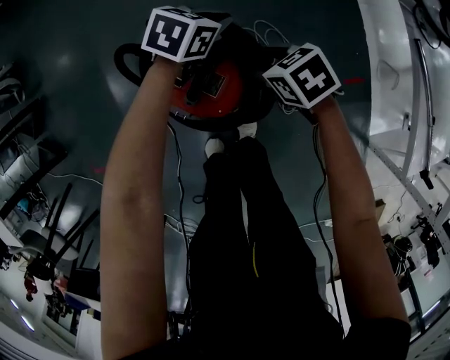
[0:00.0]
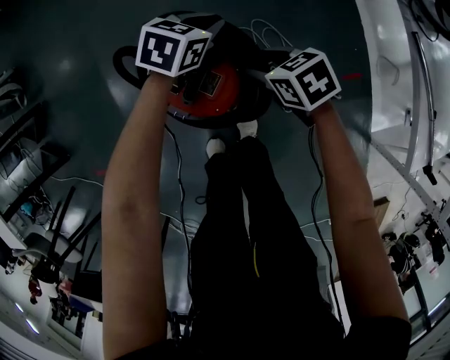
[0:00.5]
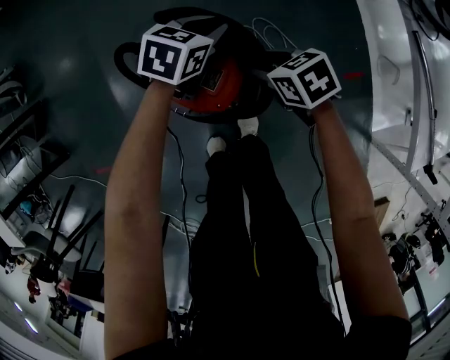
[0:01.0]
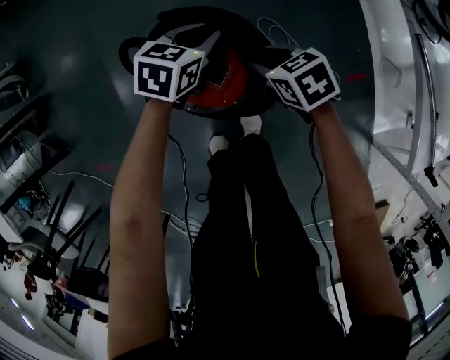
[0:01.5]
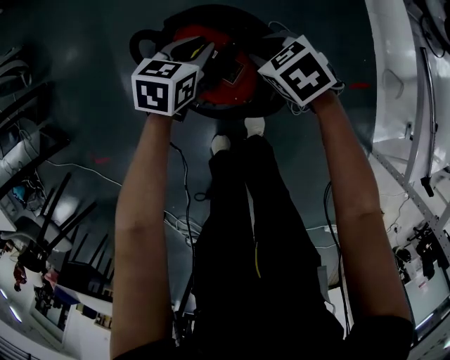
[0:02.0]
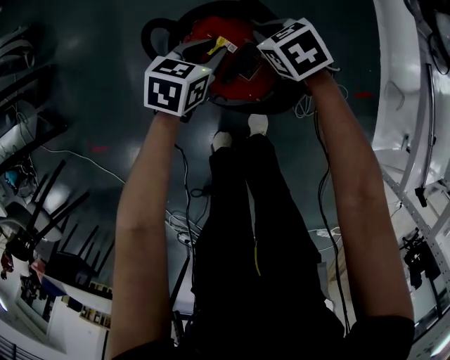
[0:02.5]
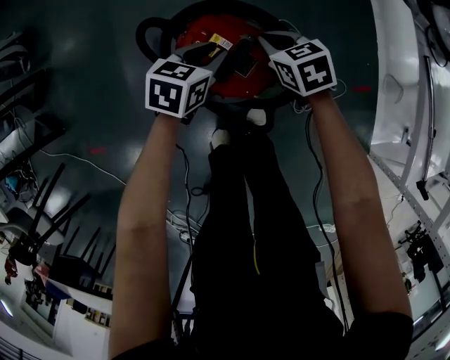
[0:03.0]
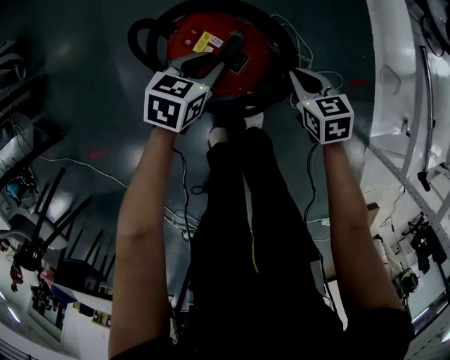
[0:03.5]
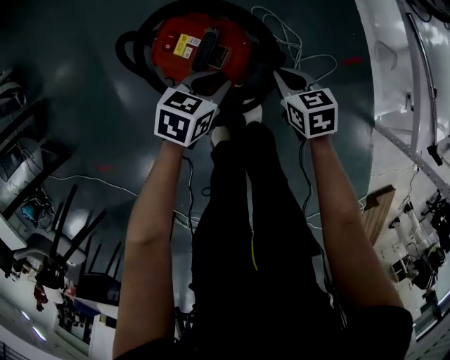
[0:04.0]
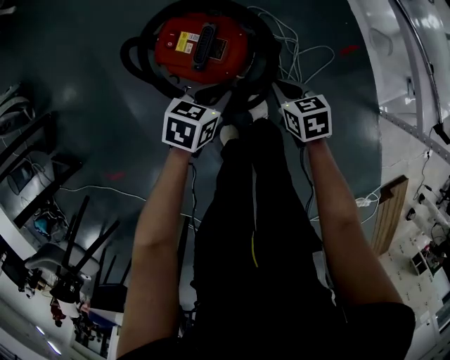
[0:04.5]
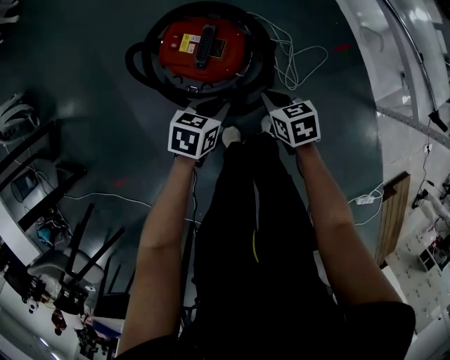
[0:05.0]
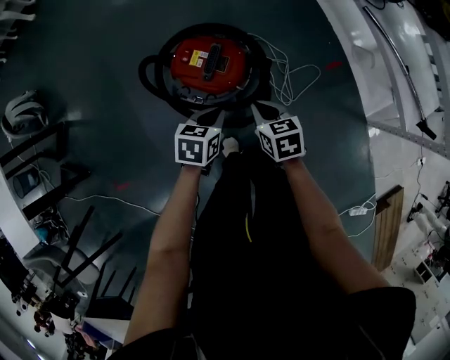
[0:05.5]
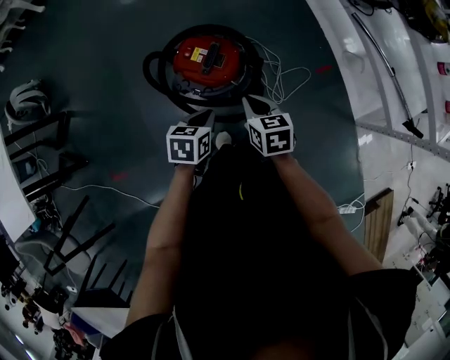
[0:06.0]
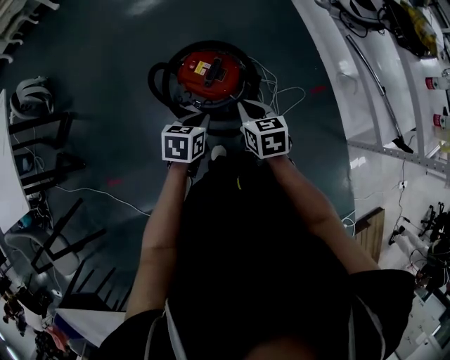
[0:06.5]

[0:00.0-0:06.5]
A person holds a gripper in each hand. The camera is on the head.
0:00.0 to 0:02.0: The right gripper changes place by some 5 cm, and closes its fingers, while the left gripper changes place by some 15 cm.
0:02.0 to 0:04.5: The left gripper ends up some 20 cm from where it was, and turns by roughly 20 degrees, while the right gripper shifts by roughly 20 cm, turns by some 40 degrees, and closes its fingers.
0:04.5 to 0:06.5: The left gripper heads upward and backward, covering roughly 20 cm; the right gripper goes about 25 cm upward.

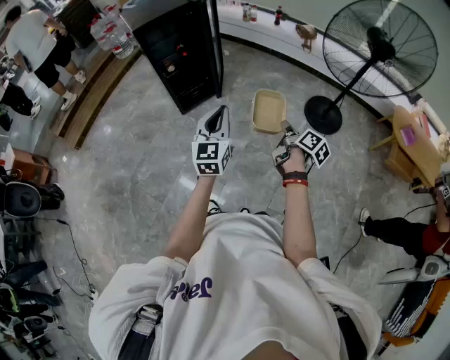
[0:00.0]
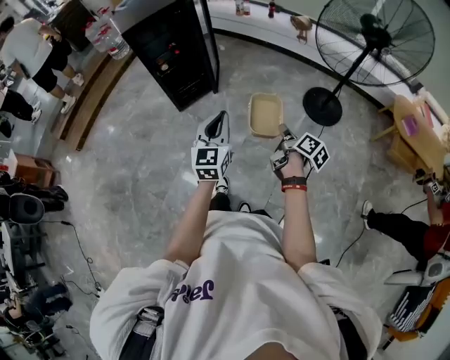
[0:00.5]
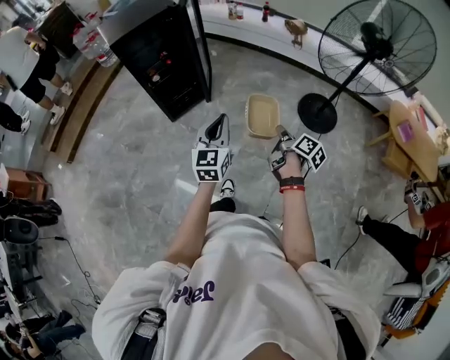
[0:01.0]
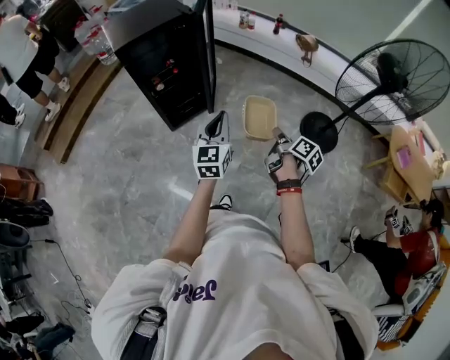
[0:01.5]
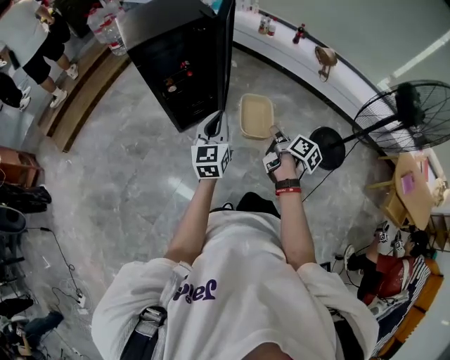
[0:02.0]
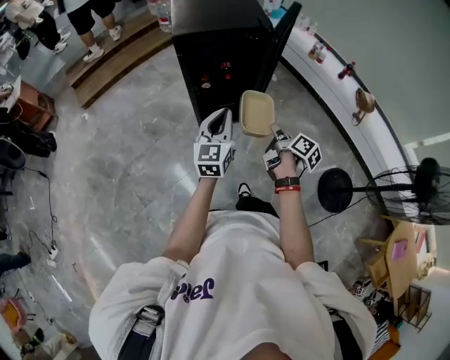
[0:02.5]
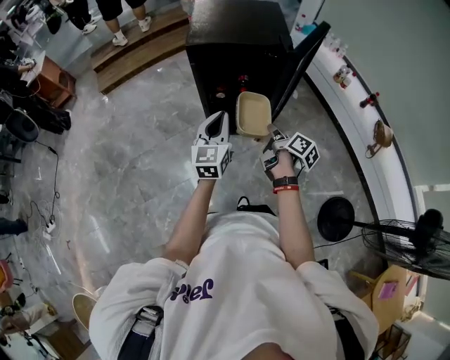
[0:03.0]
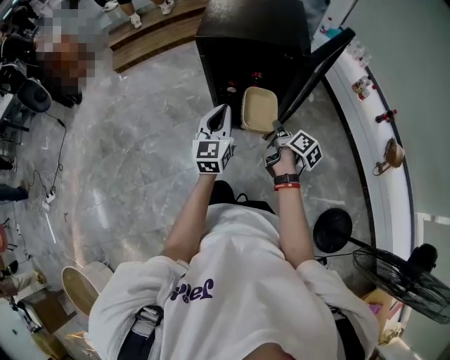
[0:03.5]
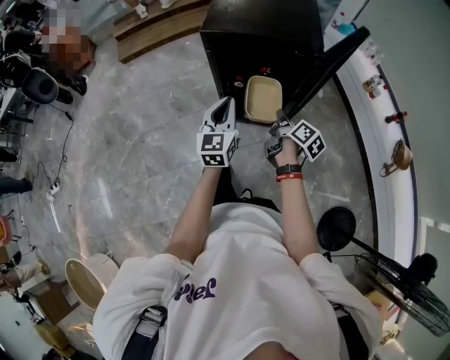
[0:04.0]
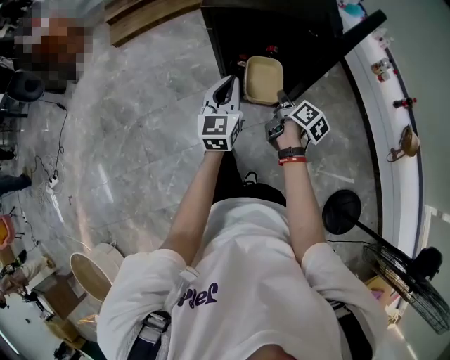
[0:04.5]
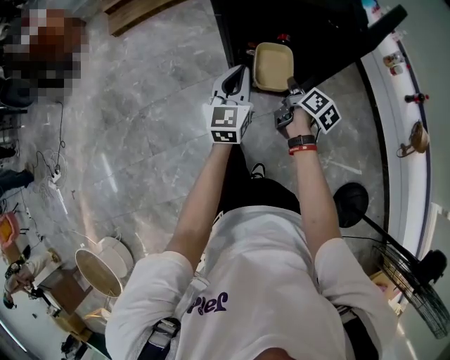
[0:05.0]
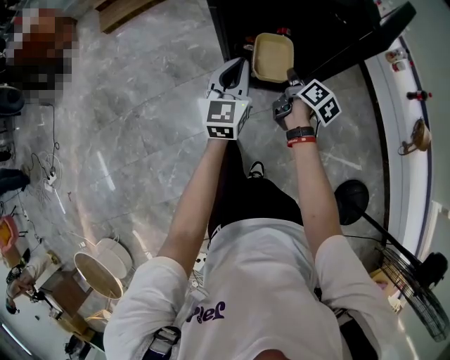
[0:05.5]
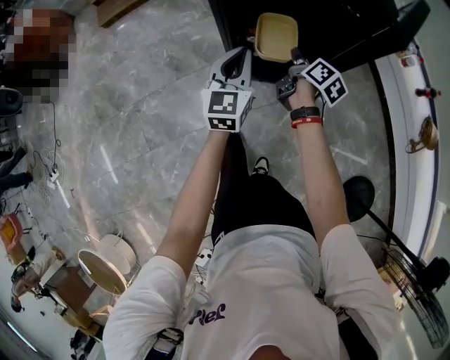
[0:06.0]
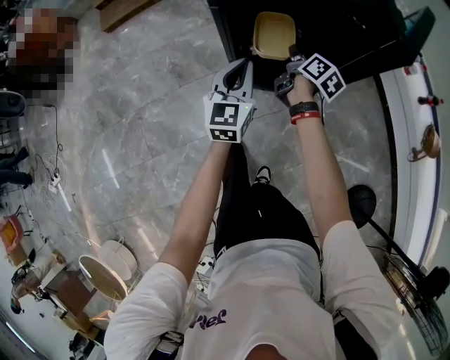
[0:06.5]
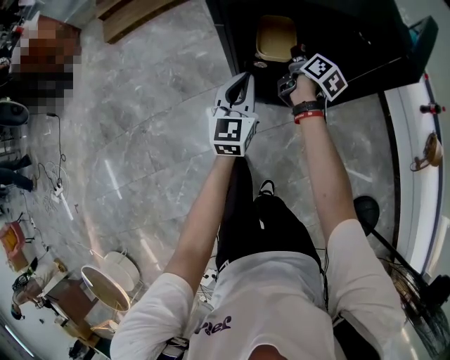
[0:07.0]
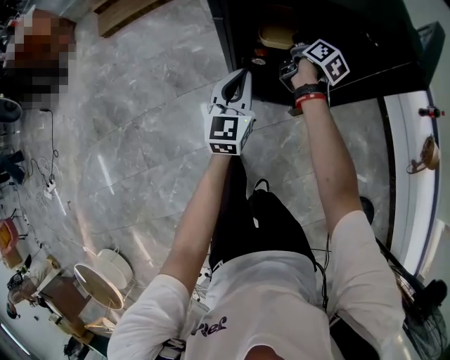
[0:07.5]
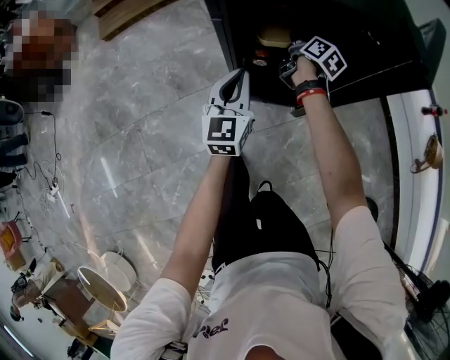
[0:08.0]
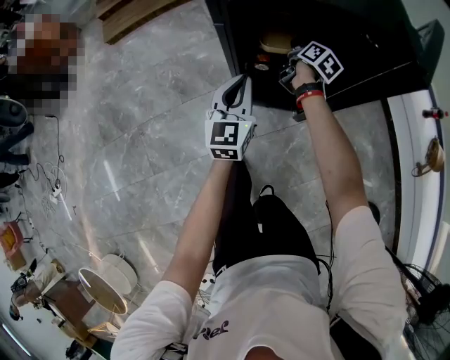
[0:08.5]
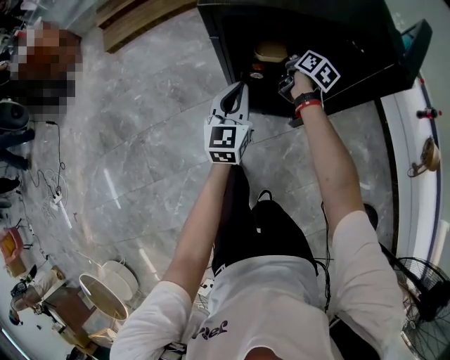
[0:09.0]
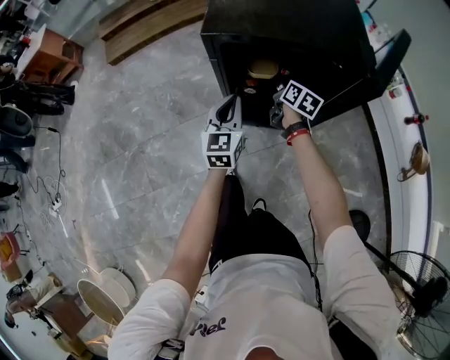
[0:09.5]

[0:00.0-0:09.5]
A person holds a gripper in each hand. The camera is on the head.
0:00.0 to 0:02.0: The two grippers go approximately 35 cm forward.
0:02.0 to 0:04.0: The right gripper ends up some 40 cm from where it was, and changes its angle by roughly 30 degrees. The left gripper changes place by roughly 30 cm, and rotates about 40 degrees.
0:04.0 to 0:05.5: The grippers both shift downward and forward by some 15 cm.
0:05.5 to 0:07.5: The right gripper goes roughly 25 cm forward; the left gripper goes some 10 cm downward and forward.
0:07.5 to 0:09.5: The left gripper heads upward, covering about 5 cm, while the right gripper travels upward and backward by approximately 10 cm, and changes its angle by some 20 degrees.

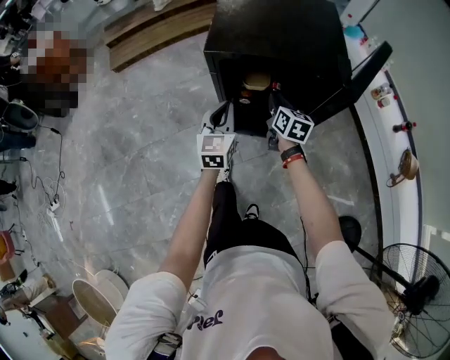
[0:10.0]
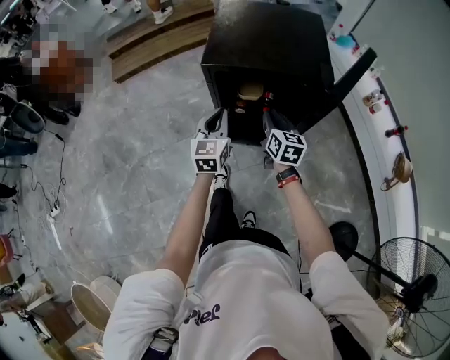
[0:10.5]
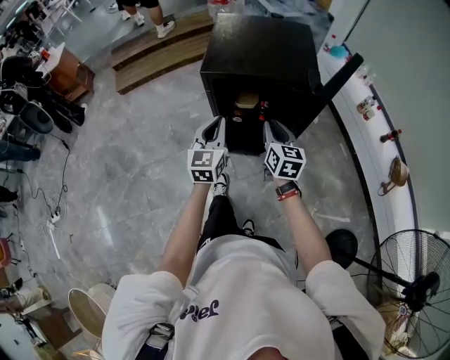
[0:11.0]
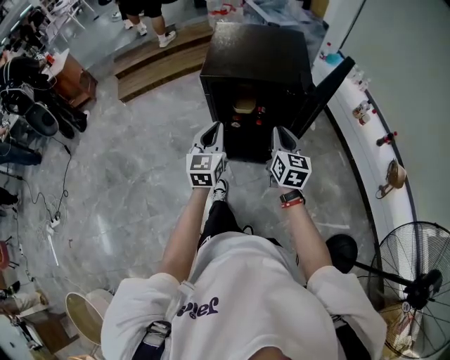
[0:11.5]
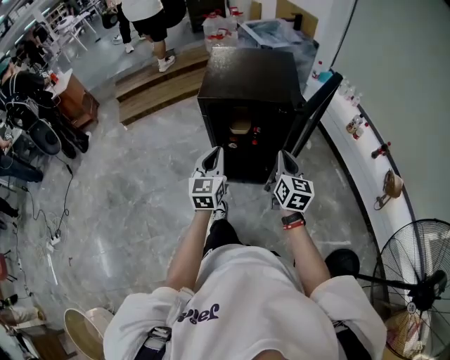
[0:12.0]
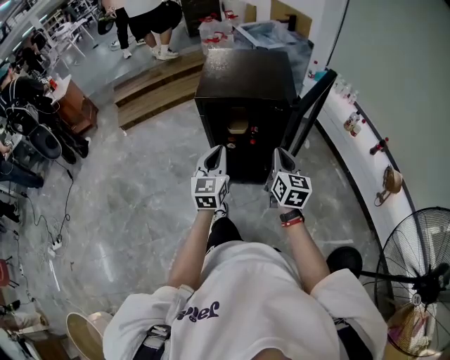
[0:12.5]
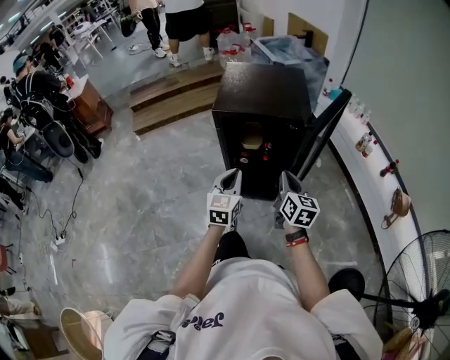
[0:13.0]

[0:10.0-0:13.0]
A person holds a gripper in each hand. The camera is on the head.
0:10.0 to 0:11.5: The right gripper heads backward and upward, covering roughly 25 cm; the left gripper heads backward and upward, covering about 15 cm.
0:11.5 to 0:13.0: The right gripper travels backward by roughly 5 cm, while the left gripper heads backward and to the right, covering about 10 cm.

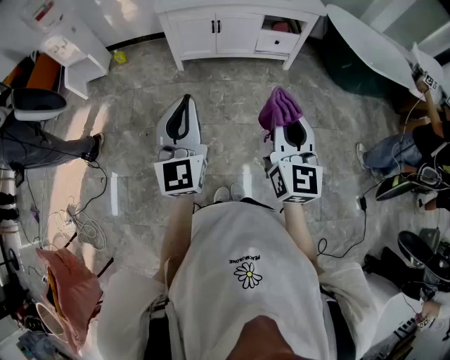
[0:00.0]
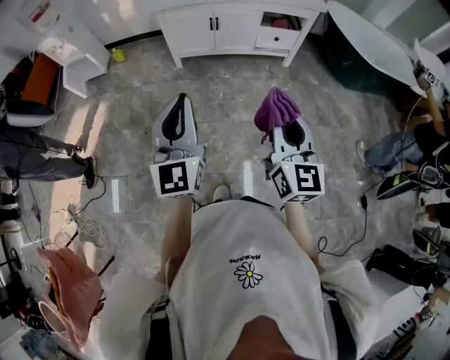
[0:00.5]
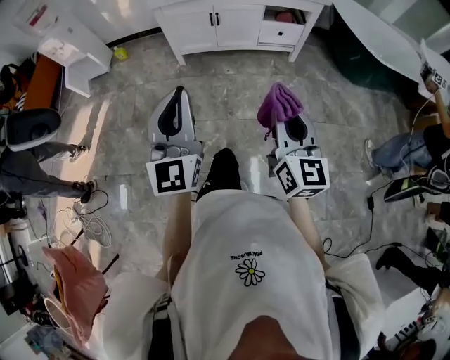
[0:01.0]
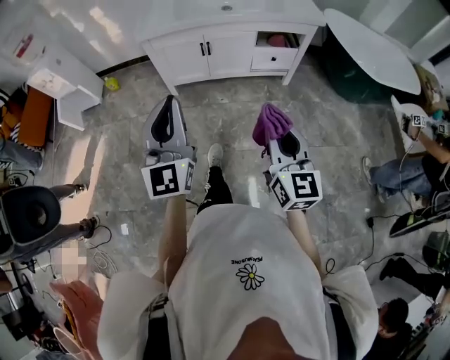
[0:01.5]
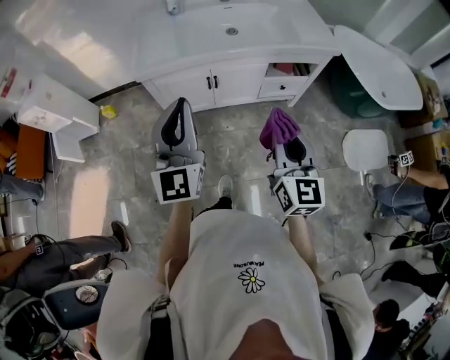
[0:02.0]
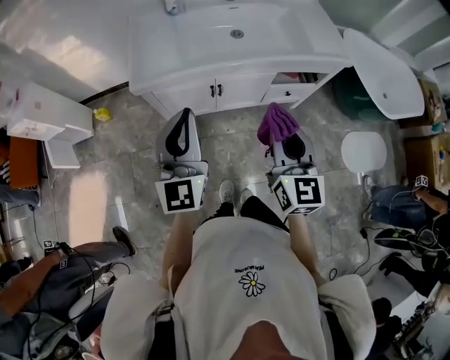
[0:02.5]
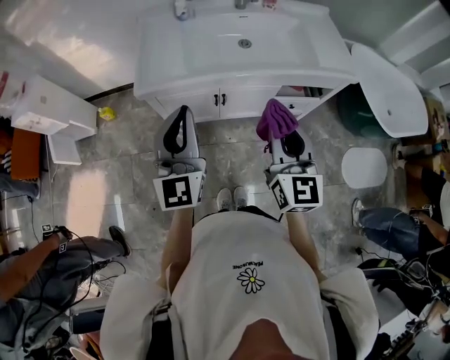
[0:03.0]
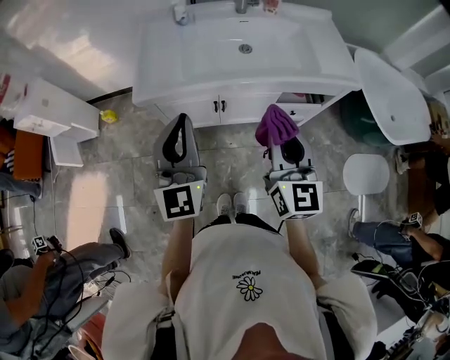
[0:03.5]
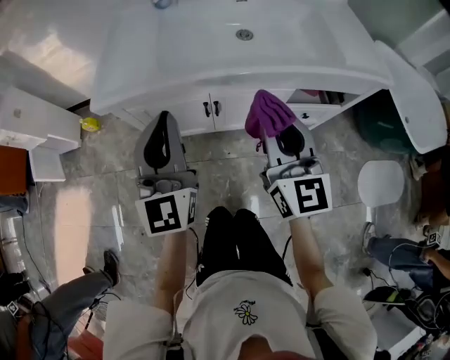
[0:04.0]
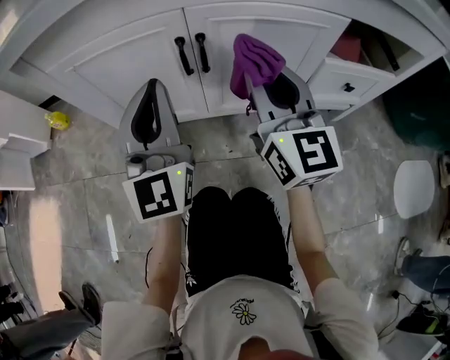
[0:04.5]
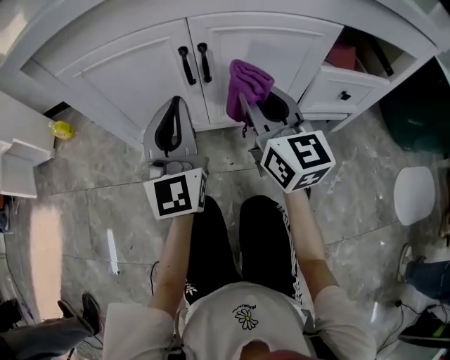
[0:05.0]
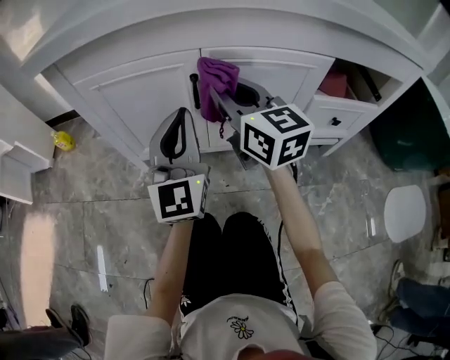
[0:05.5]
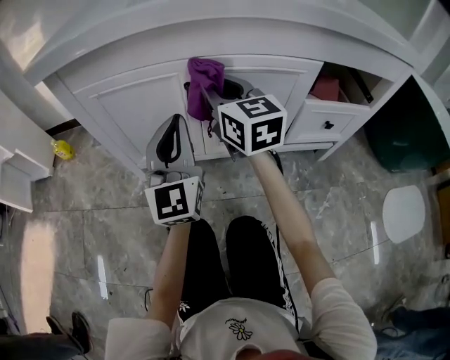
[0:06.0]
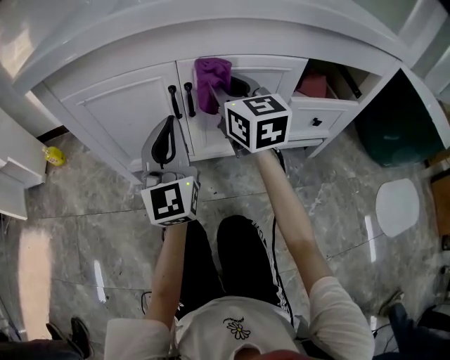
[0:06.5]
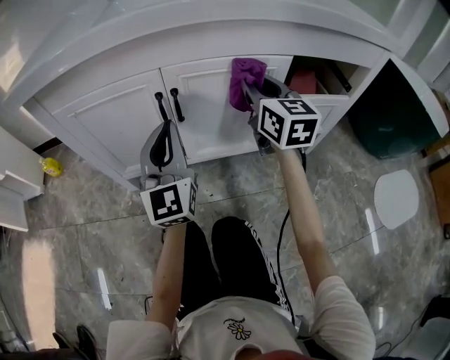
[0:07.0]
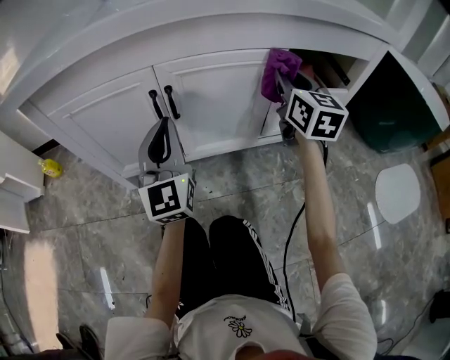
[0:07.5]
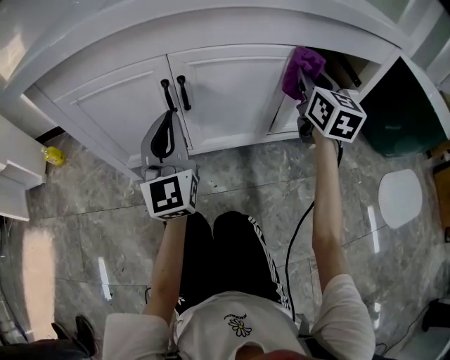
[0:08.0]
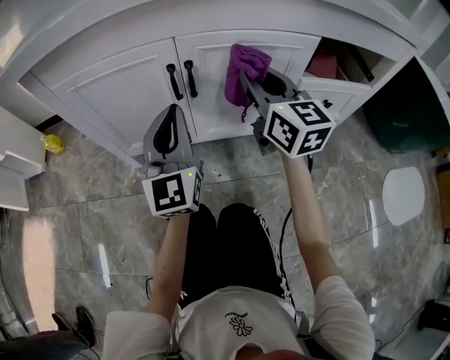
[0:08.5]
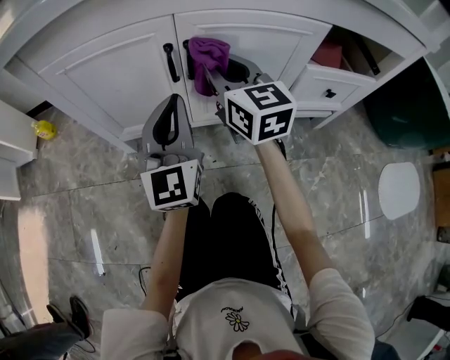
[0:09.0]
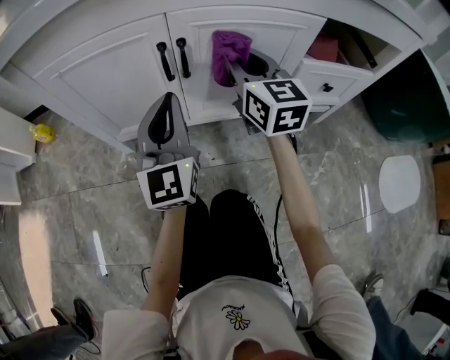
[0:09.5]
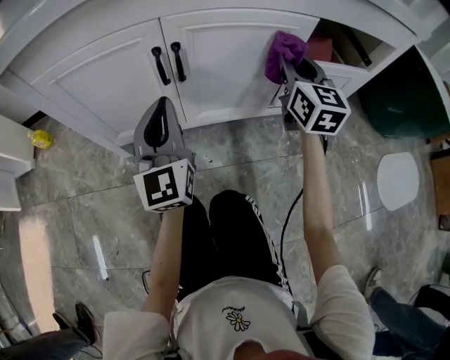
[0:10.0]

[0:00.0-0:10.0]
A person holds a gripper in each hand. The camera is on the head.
0:00.0 to 0:02.0: The two grippers go roughly 40 cm forward.
0:02.0 to 0:04.0: Both grippers travel together forward and downward, some 30 cm.
0:04.0 to 0:06.0: The left gripper shifts approximately 35 cm downward. The right gripper shifts about 35 cm downward and forward.
0:06.0 to 0:08.0: The right gripper travels to the right by about 30 cm, and swivels about 30 degrees.
0:08.0 to 0:10.0: The right gripper heads downward, covering about 5 cm, and goes to the left and returns, roughly 25 cm each way.
